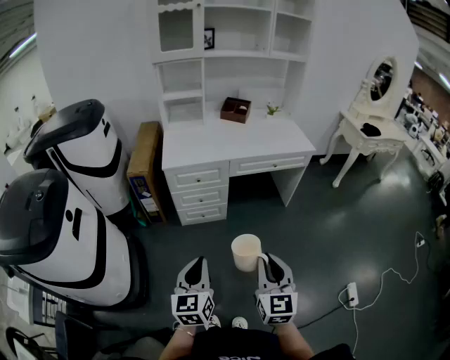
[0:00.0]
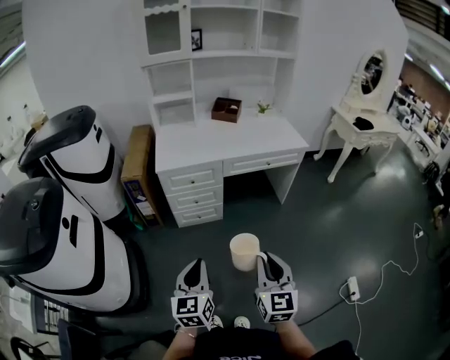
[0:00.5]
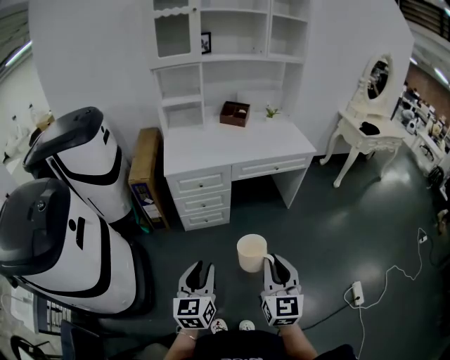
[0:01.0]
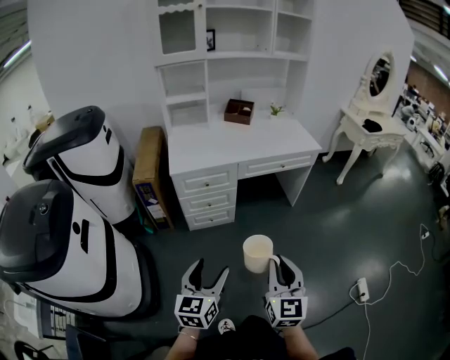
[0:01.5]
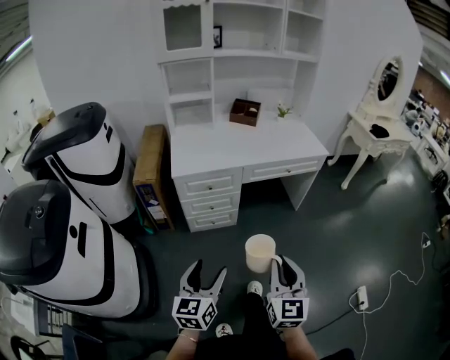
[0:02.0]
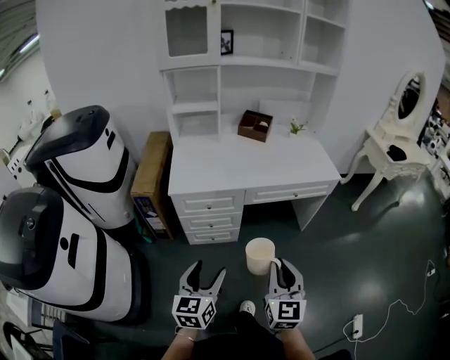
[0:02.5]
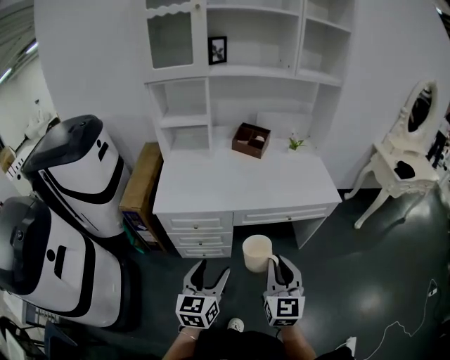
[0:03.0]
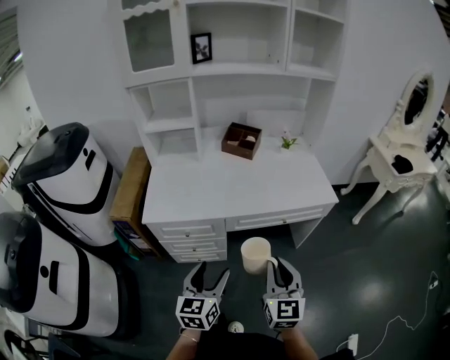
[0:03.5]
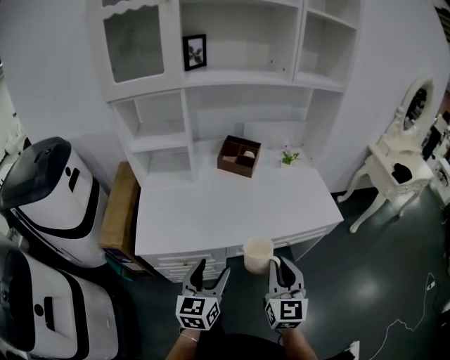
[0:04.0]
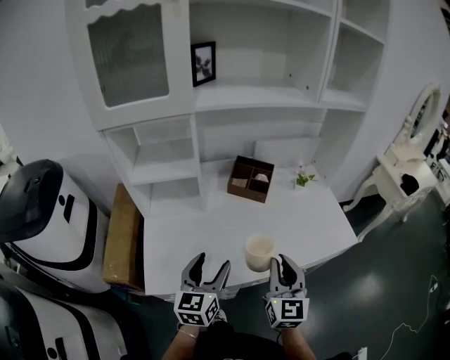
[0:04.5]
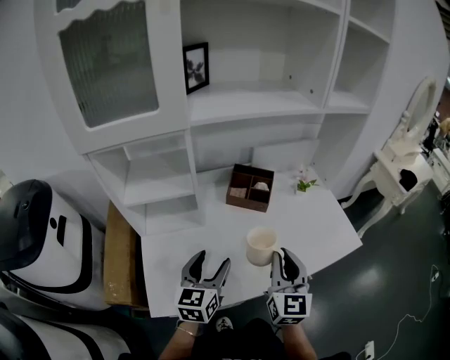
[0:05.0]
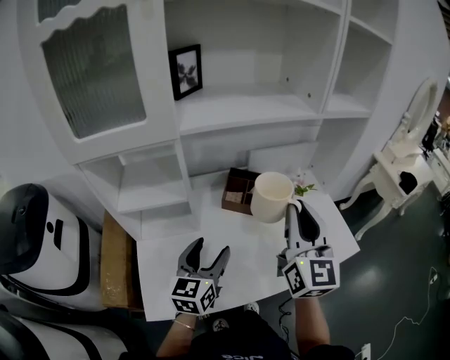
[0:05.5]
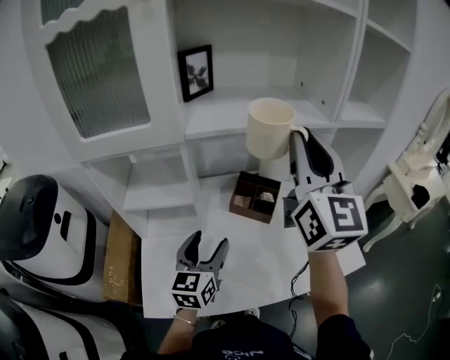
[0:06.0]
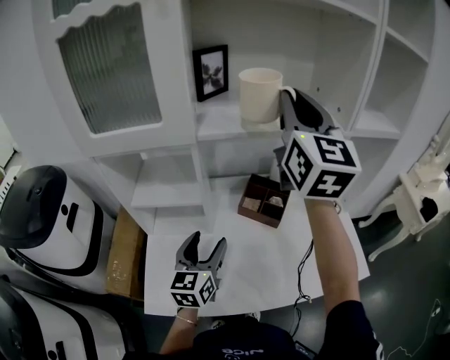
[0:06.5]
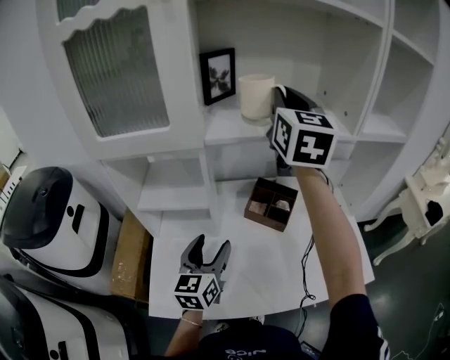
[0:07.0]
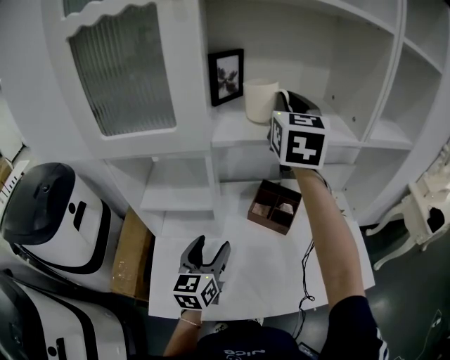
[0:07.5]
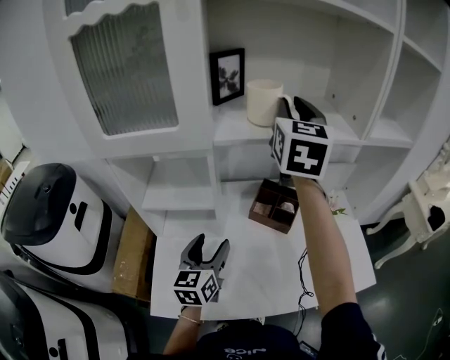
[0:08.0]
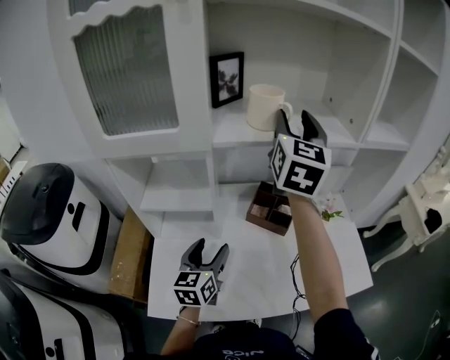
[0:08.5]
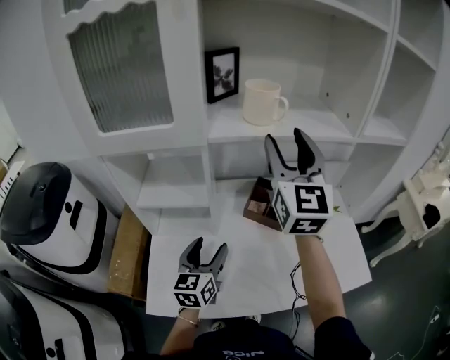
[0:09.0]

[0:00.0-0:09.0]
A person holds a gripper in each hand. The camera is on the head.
0:00.0 to 0:02.0: The left gripper ends up roughly 5 cm from where it was, and opens; the right gripper shifts roughly 5 cm forward.
0:02.0 to 0:04.5: Both grippers are carried forward, some 60 cm.
0:04.5 to 0:07.0: The left gripper moves forward, roughly 15 cm. Meanwhile the right gripper travels forward and upward by some 50 cm.
0:07.0 to 0:09.0: The right gripper moves backward and downward, about 10 cm, and opens up.

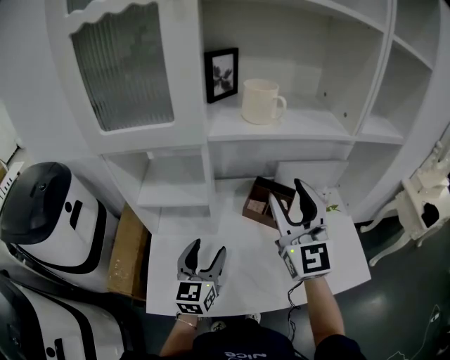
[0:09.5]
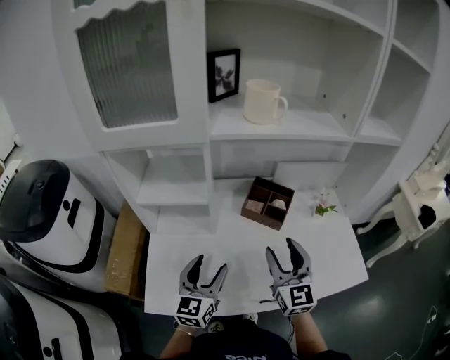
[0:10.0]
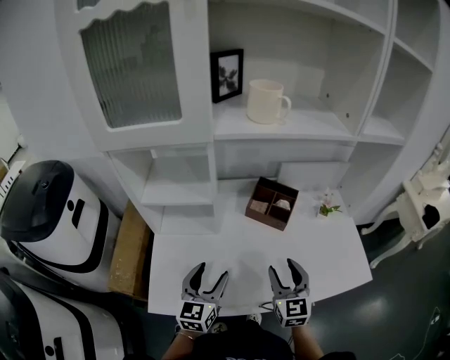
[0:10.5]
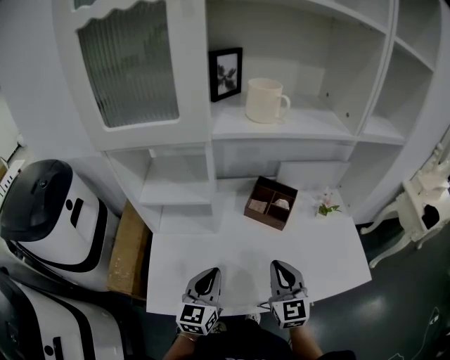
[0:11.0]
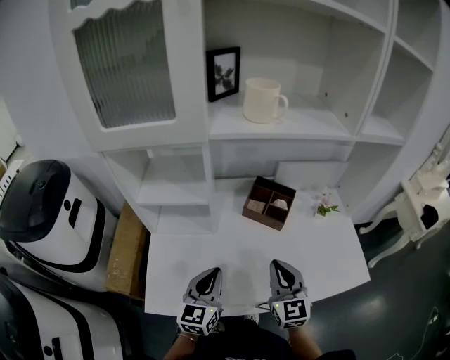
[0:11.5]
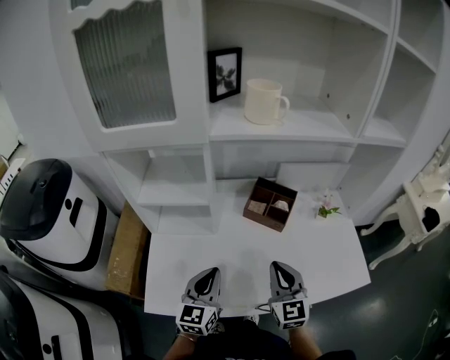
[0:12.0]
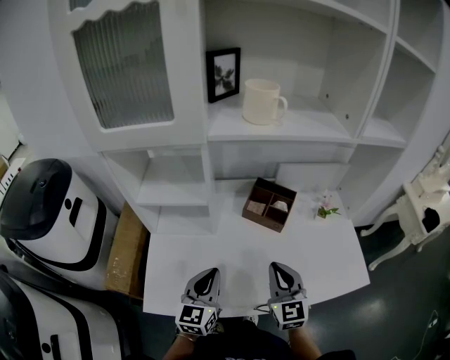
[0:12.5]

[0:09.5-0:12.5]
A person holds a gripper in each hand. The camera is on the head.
0:09.5 to 0:11.0: The right gripper goes about 25 cm downward and backward, turns by some 20 degrees, and closes its fingers; the left gripper shifts some 10 cm backward and downward, and closes.
0:11.0 to 0:12.5: The two grippers keep their place.

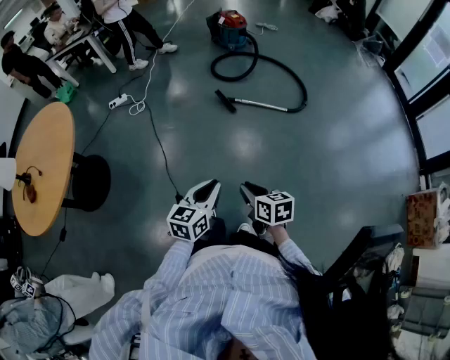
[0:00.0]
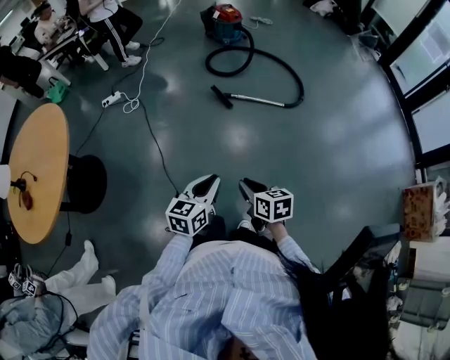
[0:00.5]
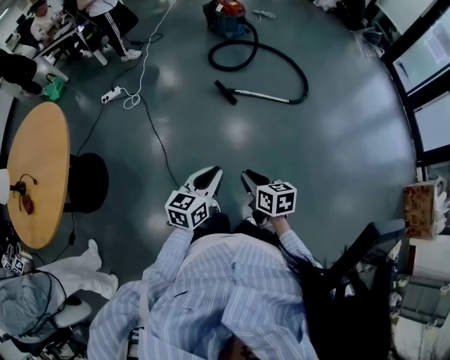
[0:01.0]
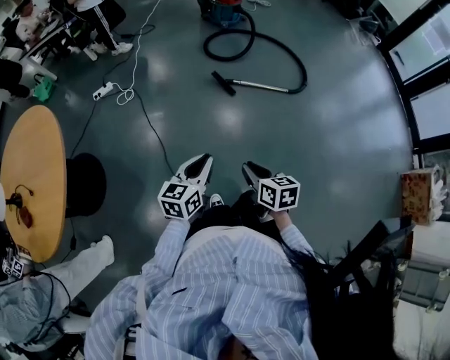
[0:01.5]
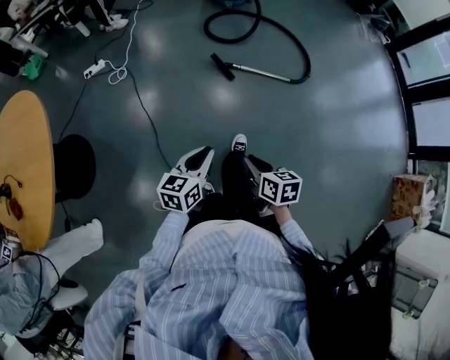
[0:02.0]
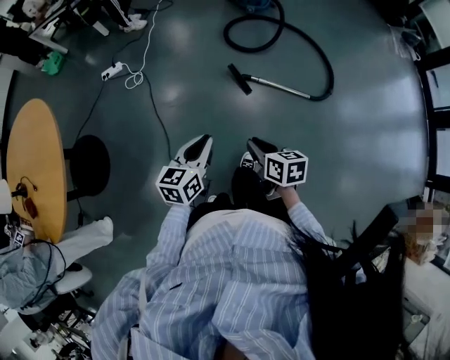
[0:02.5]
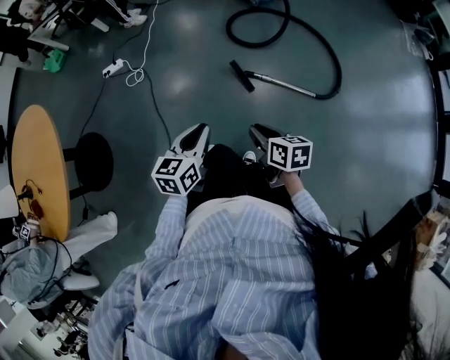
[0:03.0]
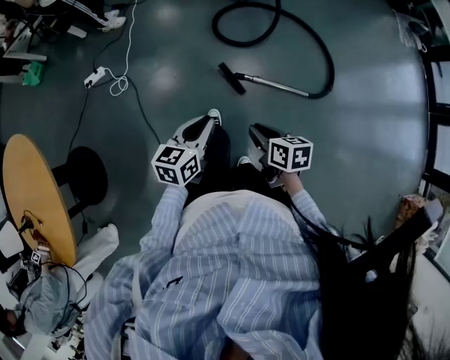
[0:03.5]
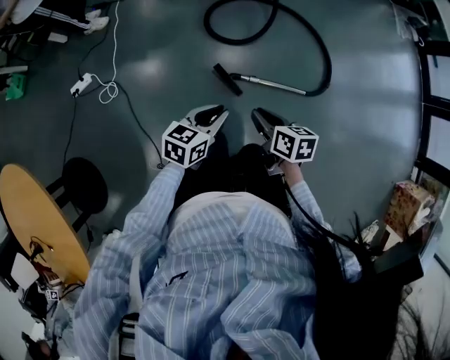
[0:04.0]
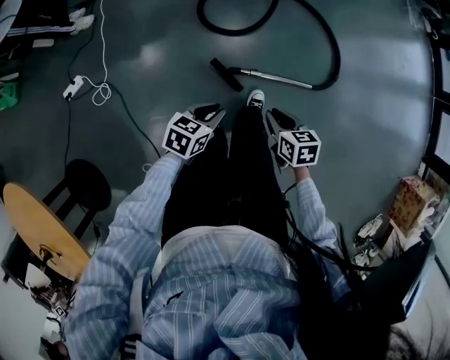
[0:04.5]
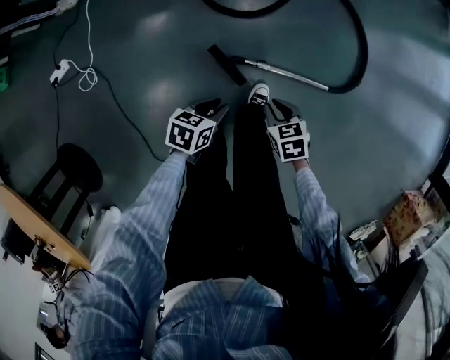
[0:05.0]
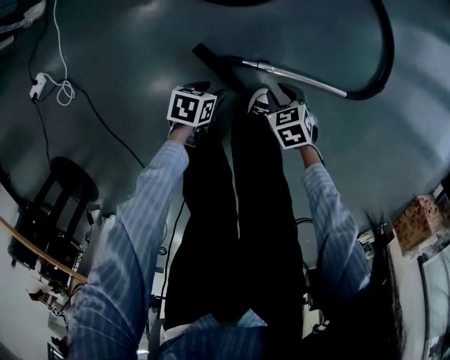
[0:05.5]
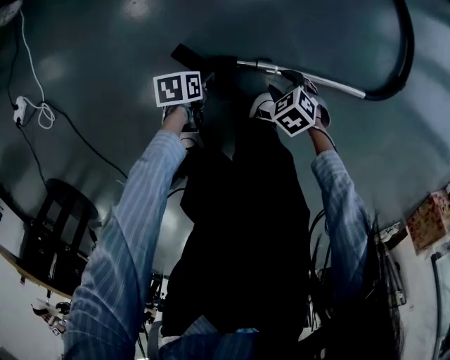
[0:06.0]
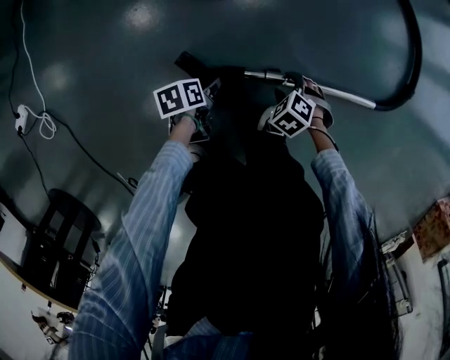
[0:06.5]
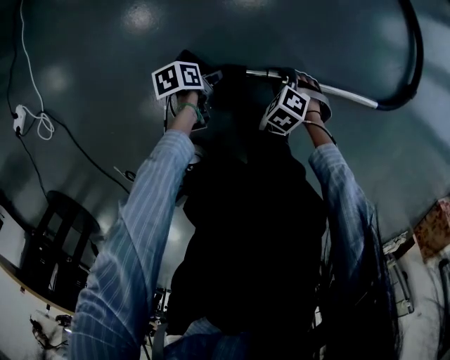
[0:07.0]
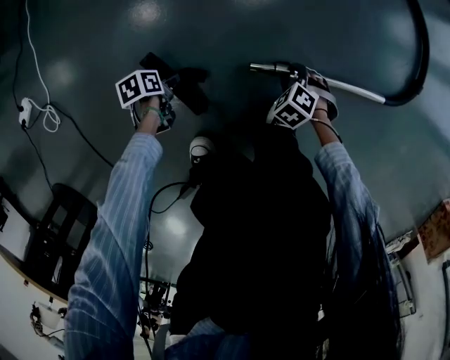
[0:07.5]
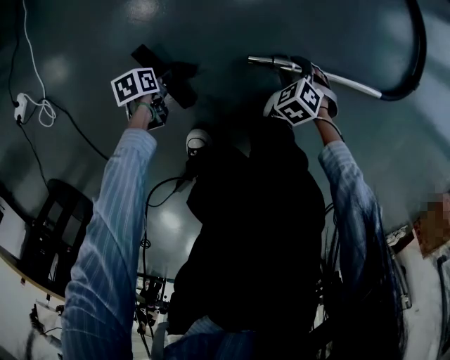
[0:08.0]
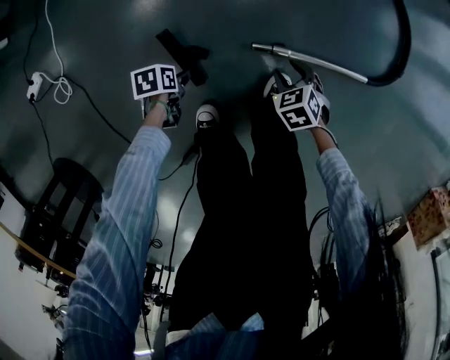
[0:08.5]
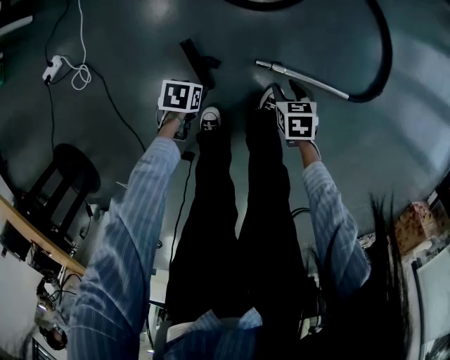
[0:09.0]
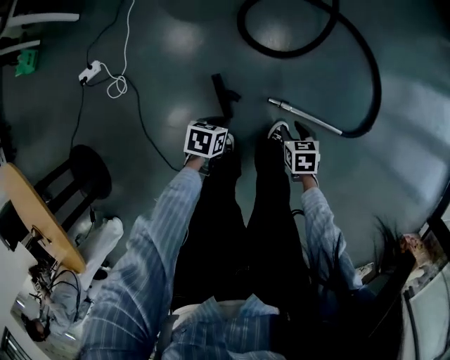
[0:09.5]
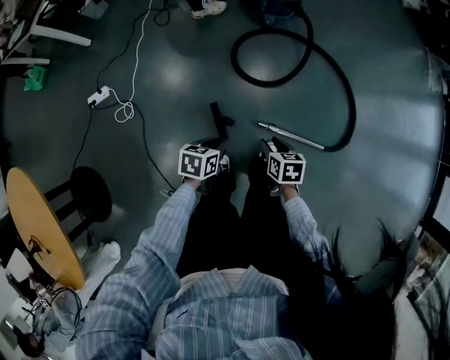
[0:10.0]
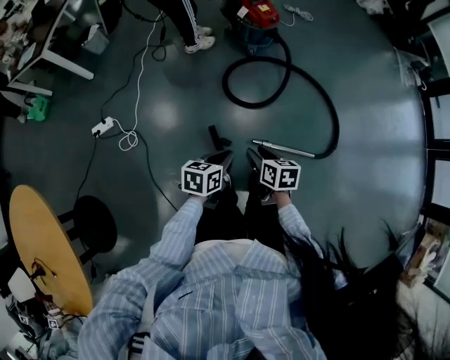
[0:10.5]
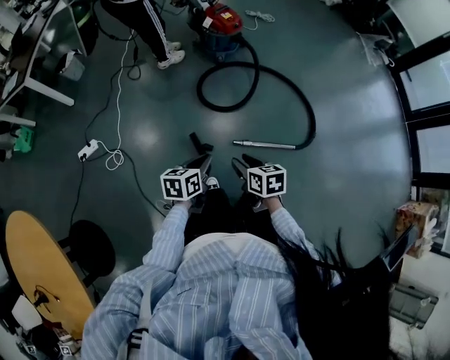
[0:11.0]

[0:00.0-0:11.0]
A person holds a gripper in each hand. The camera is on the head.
0:00.0 to 0:02.0: Both grippers travel together forward and to the left, some 20 cm.
0:02.0 to 0:03.5: The two grippers travel together, forward, roughly 40 cm.
0:03.5 to 0:05.5: The grippers both shift downward by about 60 cm. The left gripper angles its fingers downward, by some 30 degrees, and opens. Meanwhile the right gripper rotates some 40 degrees.
0:05.5 to 0:07.5: The two grippers go roughly 25 cm downward. The right gripper changes its angle by some 30 degrees; the left gripper rotates some 30 degrees.
0:07.5 to 0:09.0: Both grippers move upward, some 30 cm. The left gripper rotates about 20 degrees. Meanwhile the right gripper rotates around the line of its fingers by some 40 degrees, clockwise from behind.
0:09.0 to 0:11.0: The right gripper heads upward and backward, covering about 50 cm, and swivels roughly 30 degrees; the left gripper moves upward, roughly 50 cm, angles its fingers upward, by approximately 40 degrees, and closes.

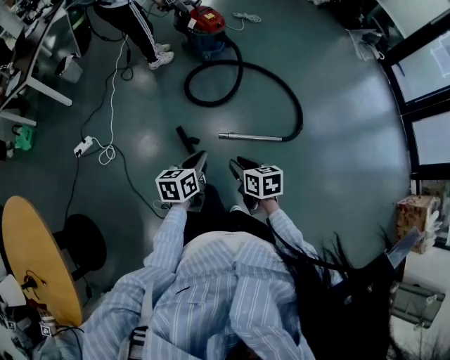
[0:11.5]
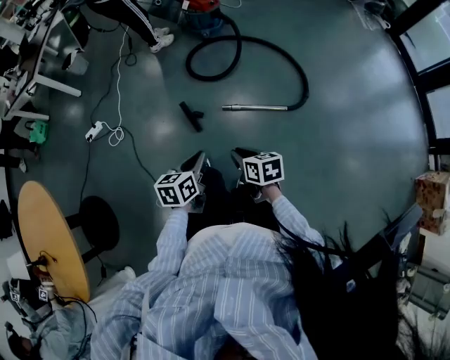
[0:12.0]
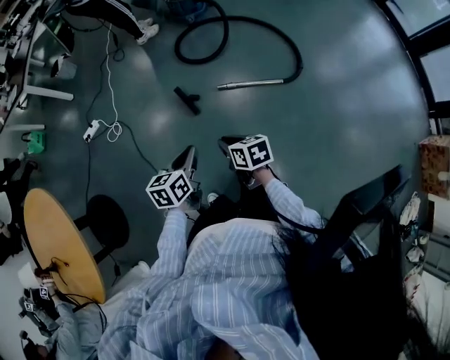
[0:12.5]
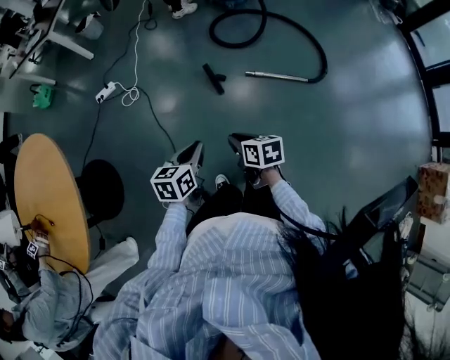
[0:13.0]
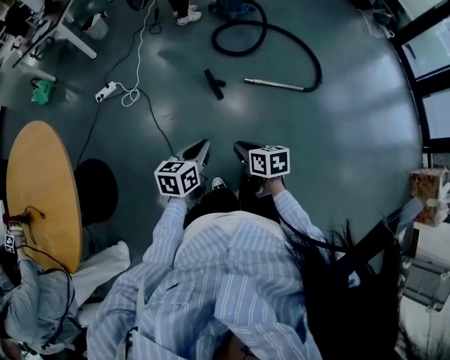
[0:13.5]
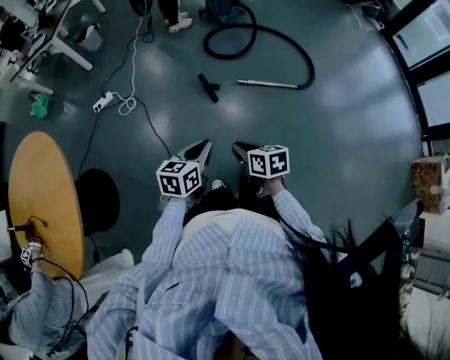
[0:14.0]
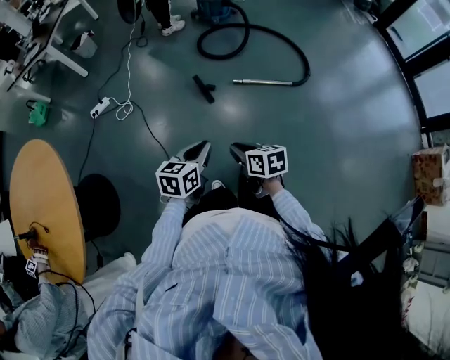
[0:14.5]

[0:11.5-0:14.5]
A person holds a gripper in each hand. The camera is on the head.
0:11.5 to 0:13.0: The grippers both shift backward and to the left by about 35 cm.
0:13.0 to 0:14.5: The right gripper is displaced backward by about 10 cm. The left gripper shifts about 5 cm backward.
